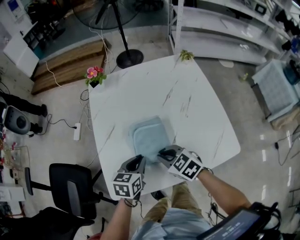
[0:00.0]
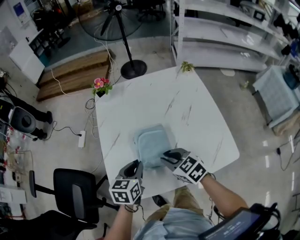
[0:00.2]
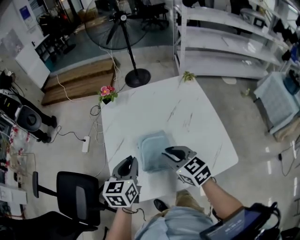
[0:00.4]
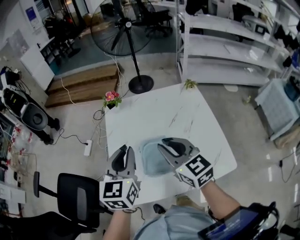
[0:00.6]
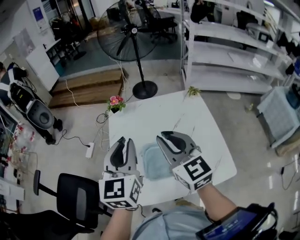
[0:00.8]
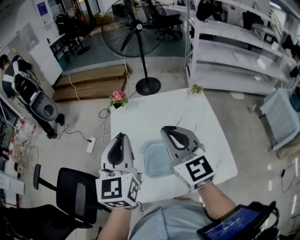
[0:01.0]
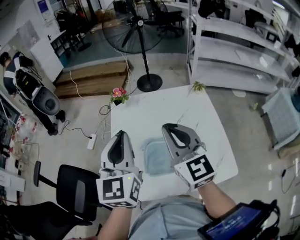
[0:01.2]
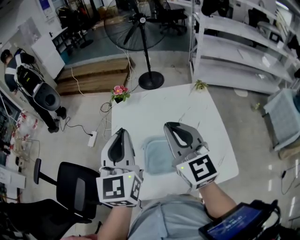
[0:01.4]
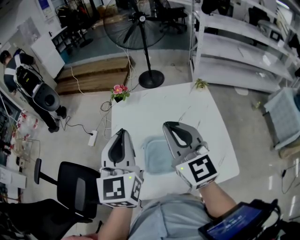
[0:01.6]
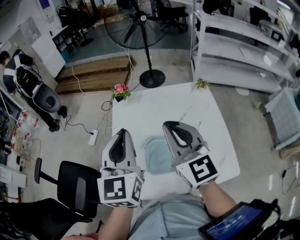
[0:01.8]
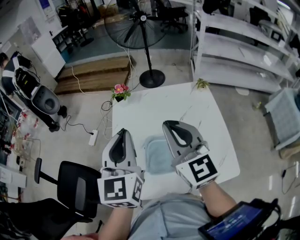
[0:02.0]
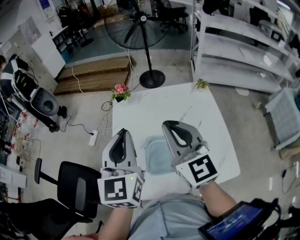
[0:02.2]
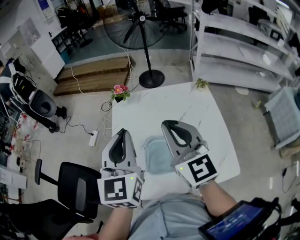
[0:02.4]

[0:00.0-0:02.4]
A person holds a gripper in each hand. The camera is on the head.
0:00.0 to 0:01.2: Both grippers move upward, roughly 35 cm. The left gripper tilts its fingers about 40 degrees upward; the right gripper tilts its fingers approximately 40 degrees upward.
0:01.2 to 0:02.4: Both grippers stay put.

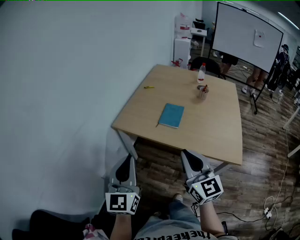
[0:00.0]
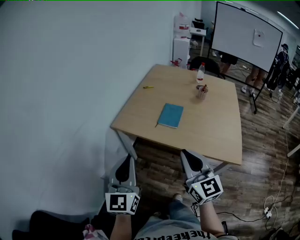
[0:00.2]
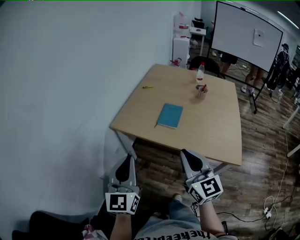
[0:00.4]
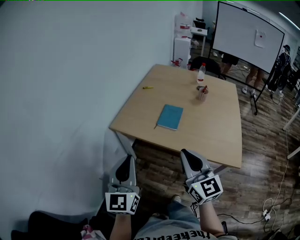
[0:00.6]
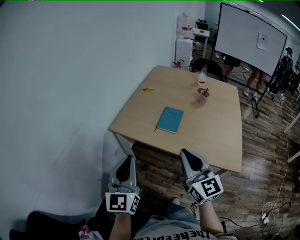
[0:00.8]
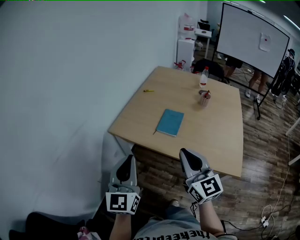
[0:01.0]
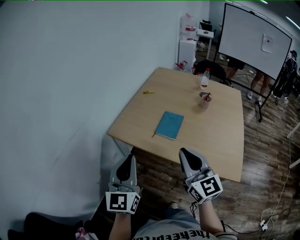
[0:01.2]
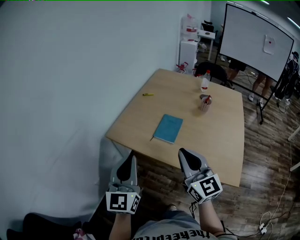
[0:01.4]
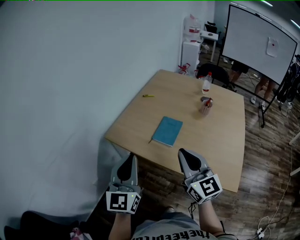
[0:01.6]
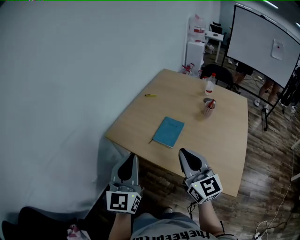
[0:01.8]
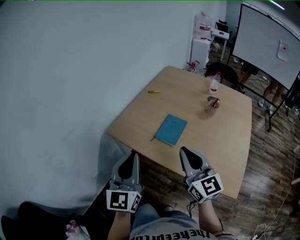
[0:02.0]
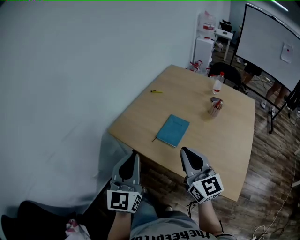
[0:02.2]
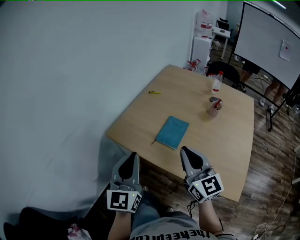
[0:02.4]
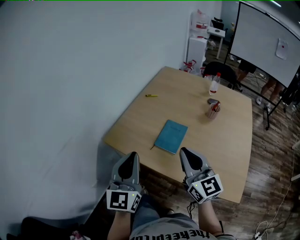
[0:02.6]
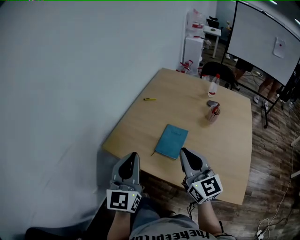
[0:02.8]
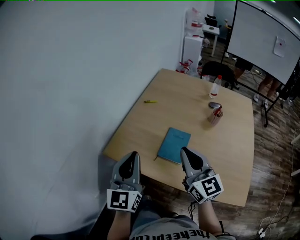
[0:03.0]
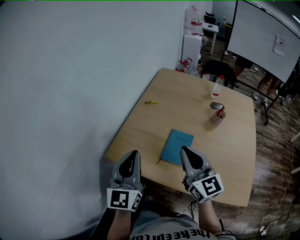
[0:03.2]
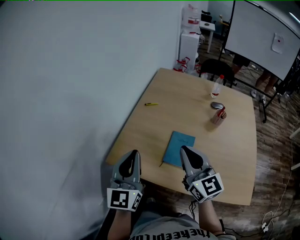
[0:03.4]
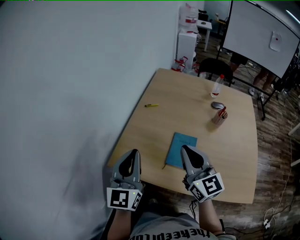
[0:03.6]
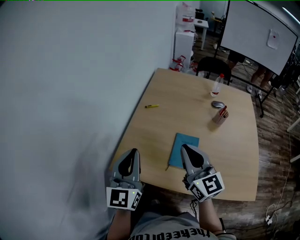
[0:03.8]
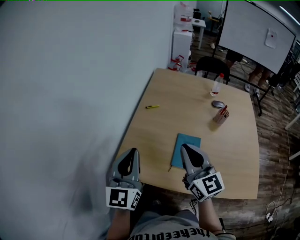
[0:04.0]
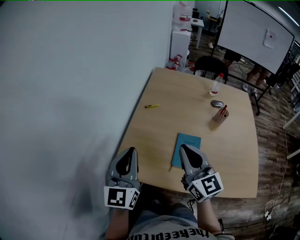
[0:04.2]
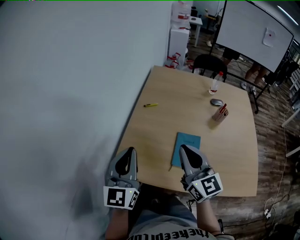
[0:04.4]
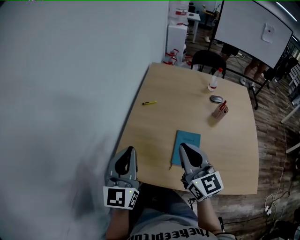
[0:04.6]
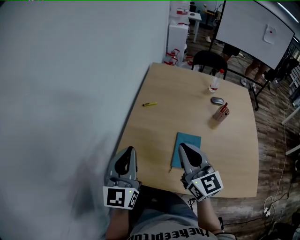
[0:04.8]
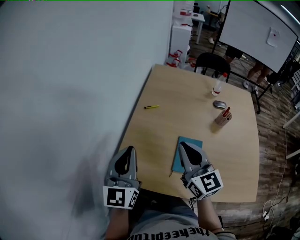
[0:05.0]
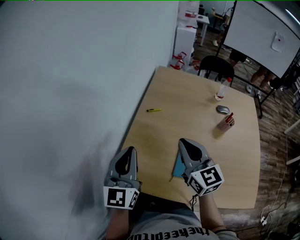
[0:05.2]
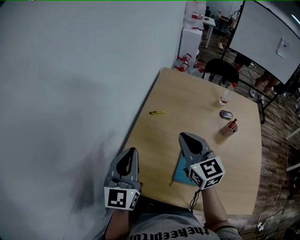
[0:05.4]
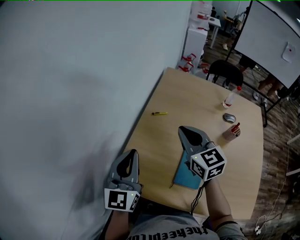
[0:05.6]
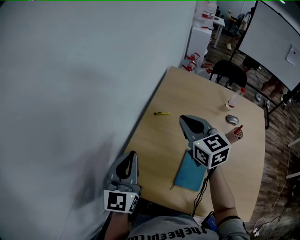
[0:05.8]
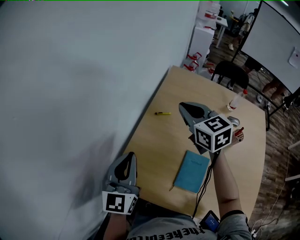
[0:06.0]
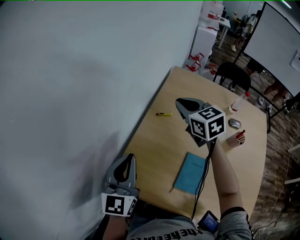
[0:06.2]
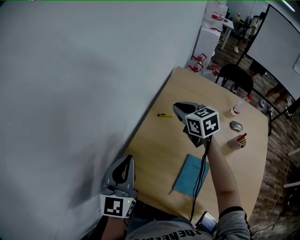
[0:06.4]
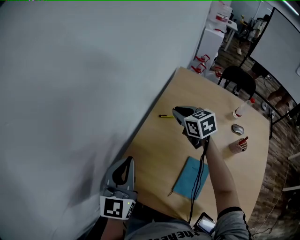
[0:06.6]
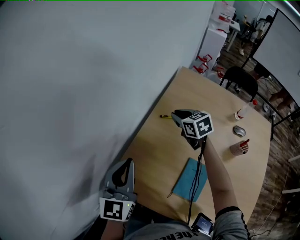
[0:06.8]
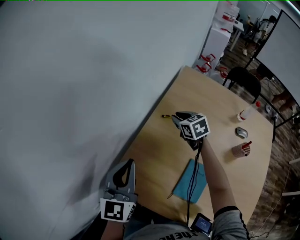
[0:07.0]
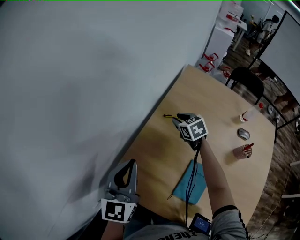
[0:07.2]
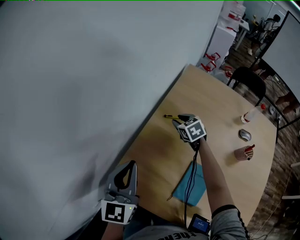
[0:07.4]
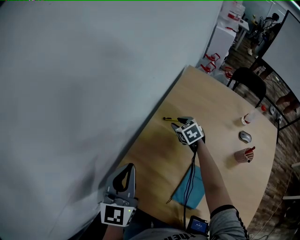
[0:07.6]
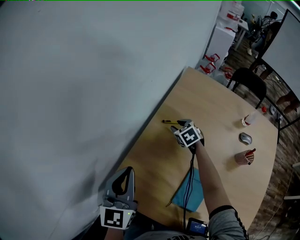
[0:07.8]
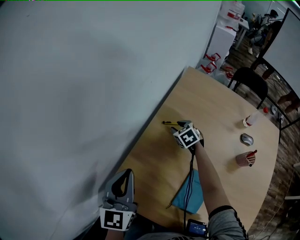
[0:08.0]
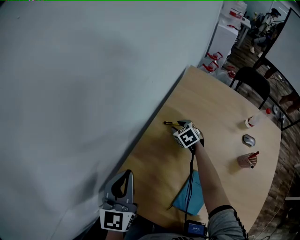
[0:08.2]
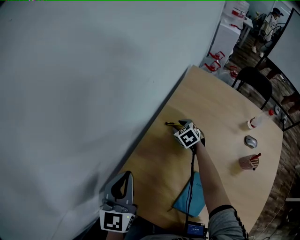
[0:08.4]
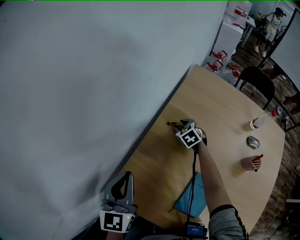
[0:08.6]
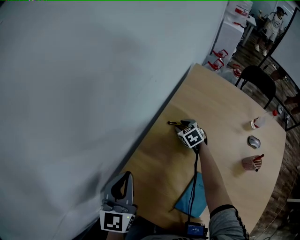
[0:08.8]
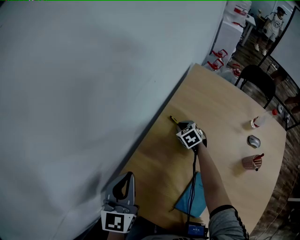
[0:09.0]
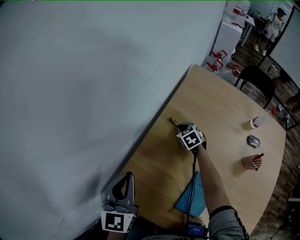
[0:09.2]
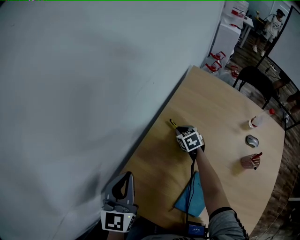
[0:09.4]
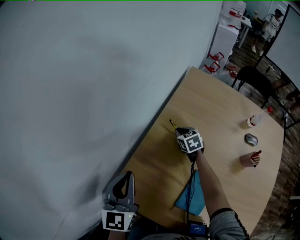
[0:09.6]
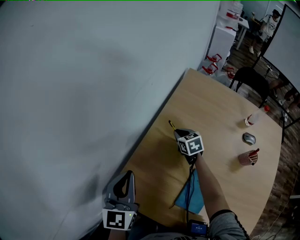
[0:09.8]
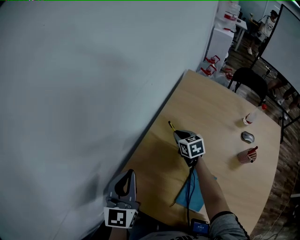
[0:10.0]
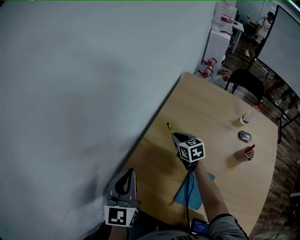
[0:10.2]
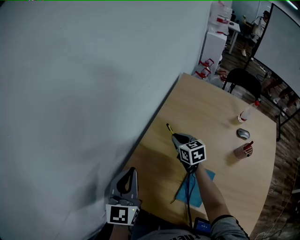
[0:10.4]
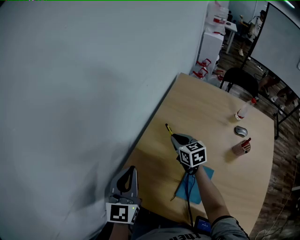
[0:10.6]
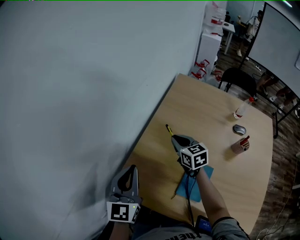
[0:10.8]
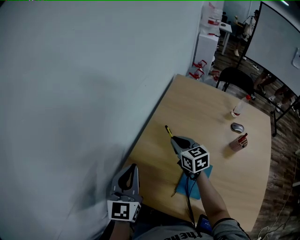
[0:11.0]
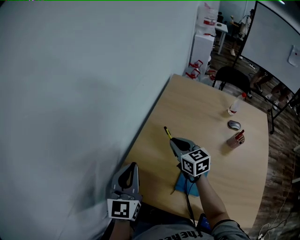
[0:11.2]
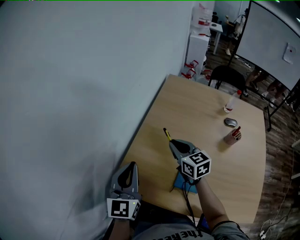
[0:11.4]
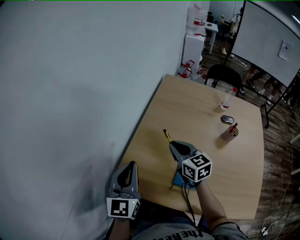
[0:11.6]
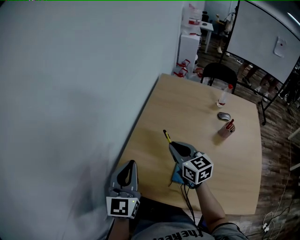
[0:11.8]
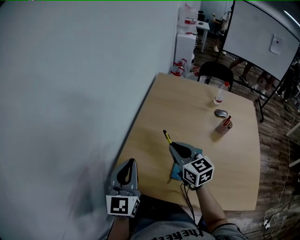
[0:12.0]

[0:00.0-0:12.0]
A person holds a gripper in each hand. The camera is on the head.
0:00.0 to 0:01.6: The two grippers go some 15 cm forward and to the right.
0:01.6 to 0:03.0: The grippers both shift forward by roughly 15 cm.
0:03.0 to 0:04.4: The left gripper is displaced forward and to the left by about 15 cm; the right gripper shifts about 15 cm to the left and forward.
0:04.4 to 0:06.0: The left gripper shifts some 10 cm forward, while the right gripper is displaced forward by some 30 cm, and rotates some 30 degrees.
0:06.0 to 0:07.6: The right gripper goes some 30 cm downward and forward, rotates some 30 degrees, and opens up.
0:07.6 to 0:09.0: The right gripper shifts approximately 5 cm downward, and closes up.
0:09.0 to 0:10.4: The right gripper is displaced upward and backward by roughly 15 cm, and rotates some 30 degrees, while the left gripper ends up some 5 cm from where it was.
0:10.4 to 0:12.0: The left gripper heads backward, covering some 10 cm; the right gripper is displaced backward and upward by roughly 25 cm.

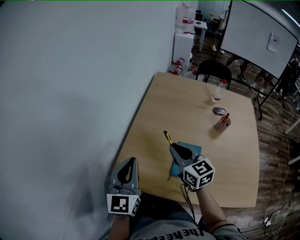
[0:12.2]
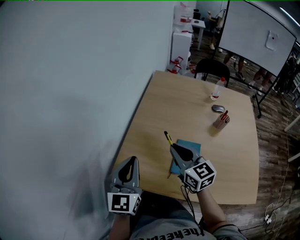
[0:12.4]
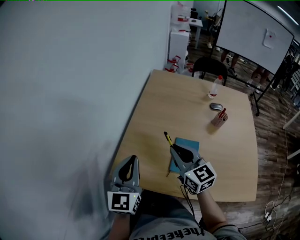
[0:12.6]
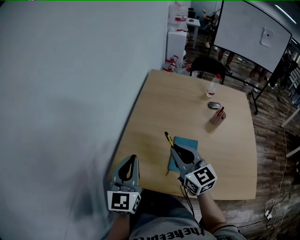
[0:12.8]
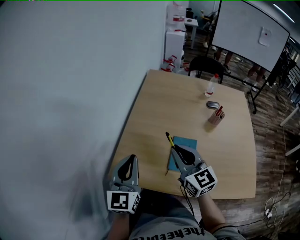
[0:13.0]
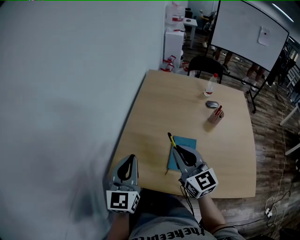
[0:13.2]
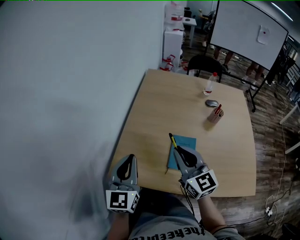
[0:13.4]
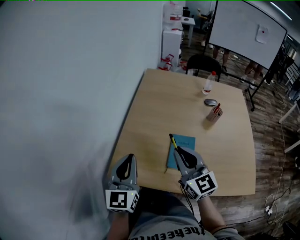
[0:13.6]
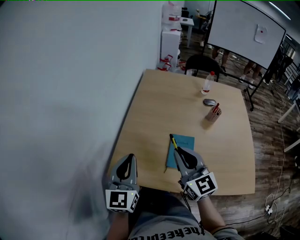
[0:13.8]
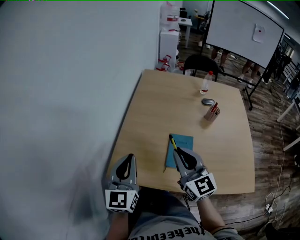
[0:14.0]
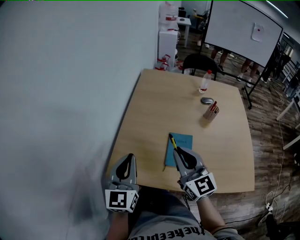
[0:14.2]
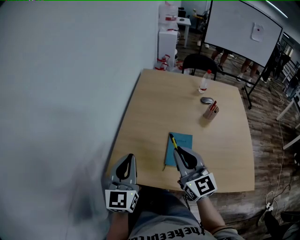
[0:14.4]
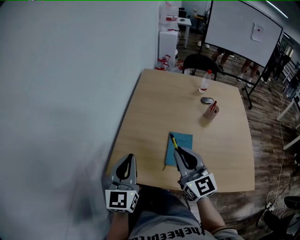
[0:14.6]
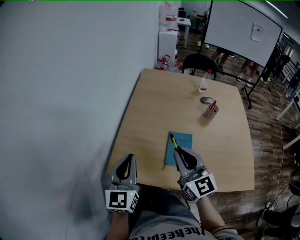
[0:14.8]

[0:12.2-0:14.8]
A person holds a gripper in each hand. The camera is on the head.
0:12.2 to 0:13.4: The right gripper is displaced backward by some 5 cm.
0:13.4 to 0:14.8: The grippers move only a little.

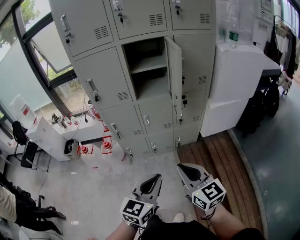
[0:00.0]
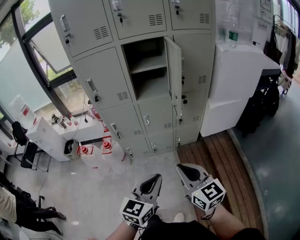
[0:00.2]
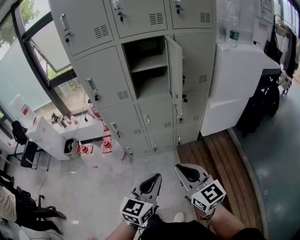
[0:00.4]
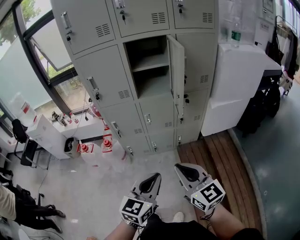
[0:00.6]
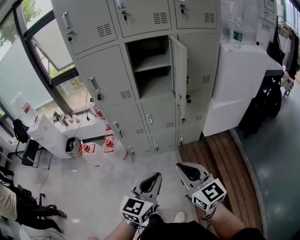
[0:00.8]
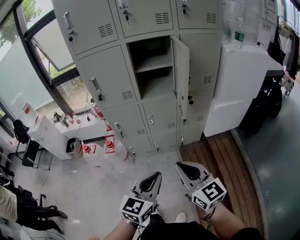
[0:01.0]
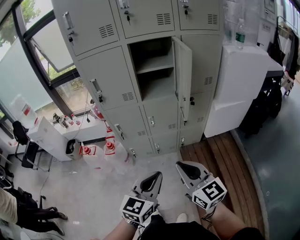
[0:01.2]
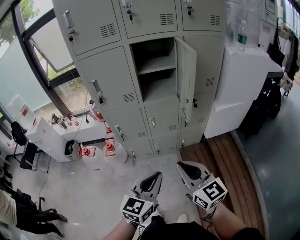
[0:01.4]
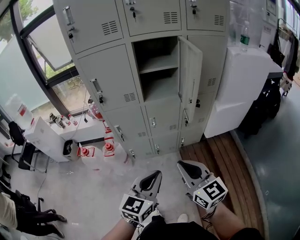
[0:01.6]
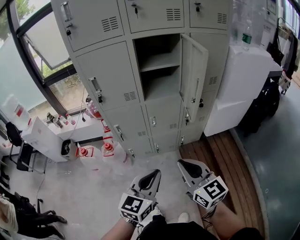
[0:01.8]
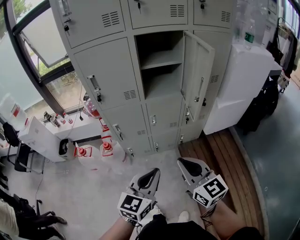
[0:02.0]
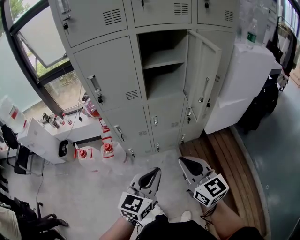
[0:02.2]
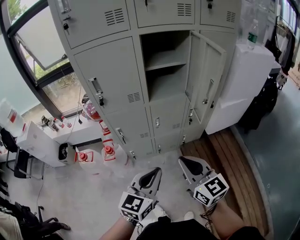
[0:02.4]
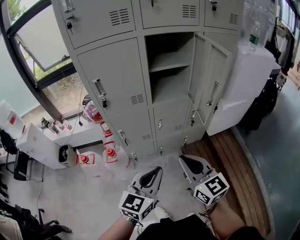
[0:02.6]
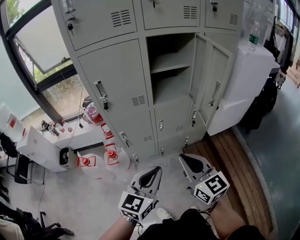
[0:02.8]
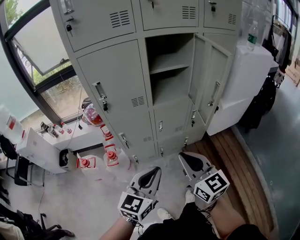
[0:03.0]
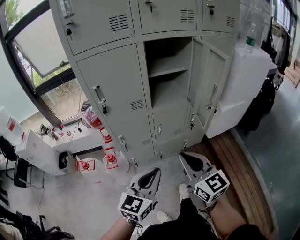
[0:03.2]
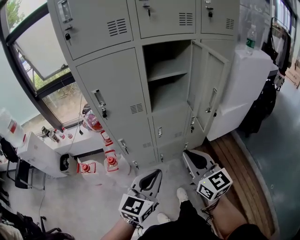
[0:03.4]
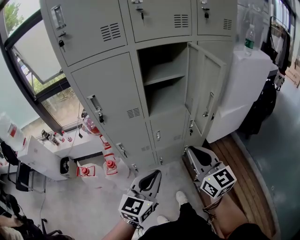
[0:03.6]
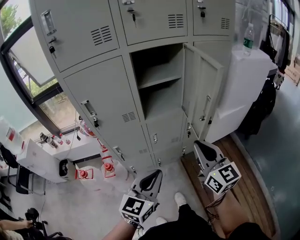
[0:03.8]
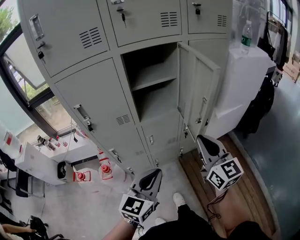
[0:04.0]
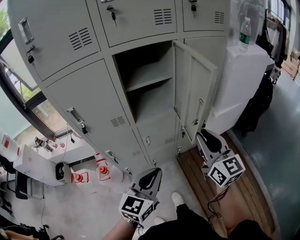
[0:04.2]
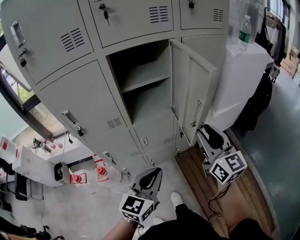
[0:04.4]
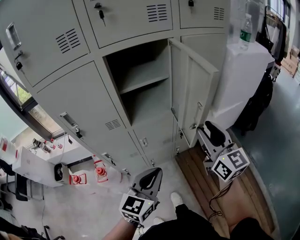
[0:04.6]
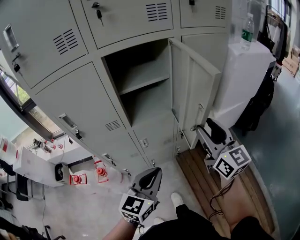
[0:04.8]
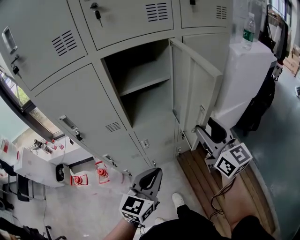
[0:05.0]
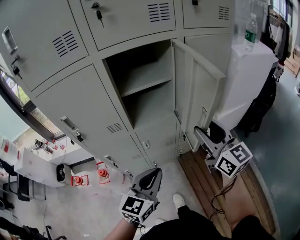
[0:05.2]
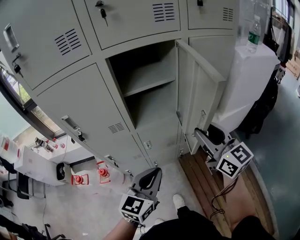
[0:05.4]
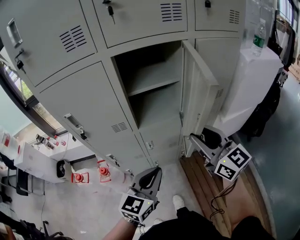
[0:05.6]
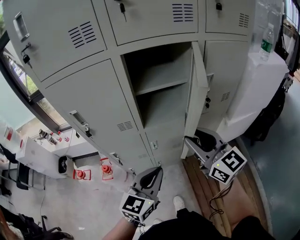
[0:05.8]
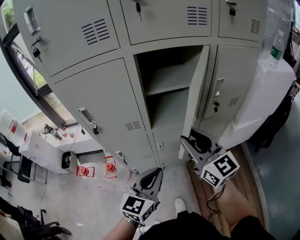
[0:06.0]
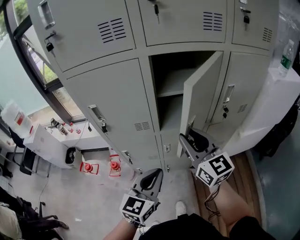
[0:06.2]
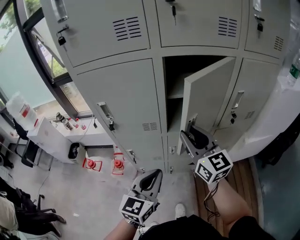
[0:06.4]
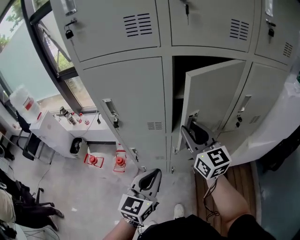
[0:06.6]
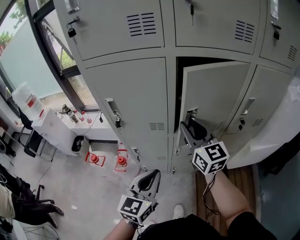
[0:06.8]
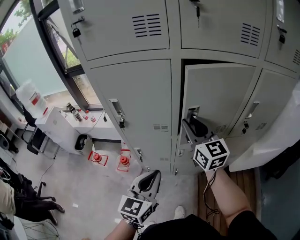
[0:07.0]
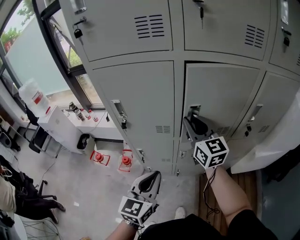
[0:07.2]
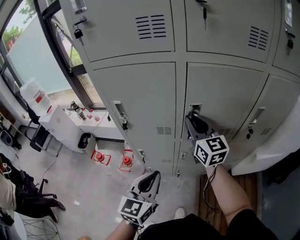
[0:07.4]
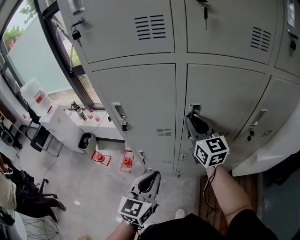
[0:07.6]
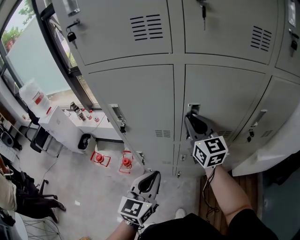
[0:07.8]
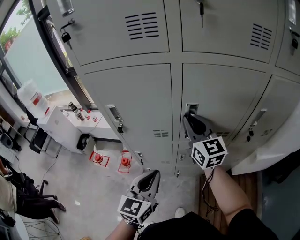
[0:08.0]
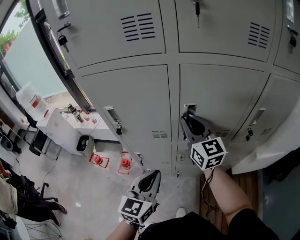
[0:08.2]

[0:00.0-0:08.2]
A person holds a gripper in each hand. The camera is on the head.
0:00.0 to 0:01.6: The two grippers go roughly 10 cm to the left and forward.
0:01.6 to 0:03.2: The right gripper goes roughly 15 cm forward and to the left. The left gripper heads to the left and forward, covering about 15 cm.
0:03.2 to 0:05.0: The left gripper shifts about 15 cm forward and to the right. The right gripper heads forward and to the right, covering approximately 25 cm, and opens its fingers.
0:05.0 to 0:06.6: The right gripper moves to the left and forward, roughly 25 cm, while the left gripper is displaced to the left by approximately 10 cm, and rotates approximately 20 degrees.
0:06.6 to 0:08.2: The right gripper is displaced forward by about 10 cm.
